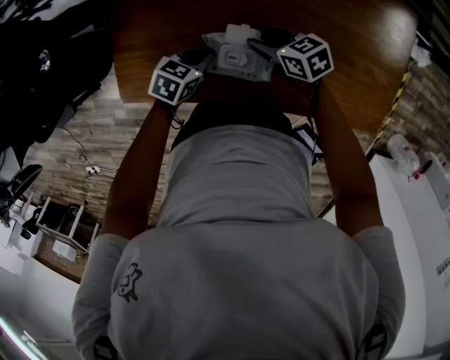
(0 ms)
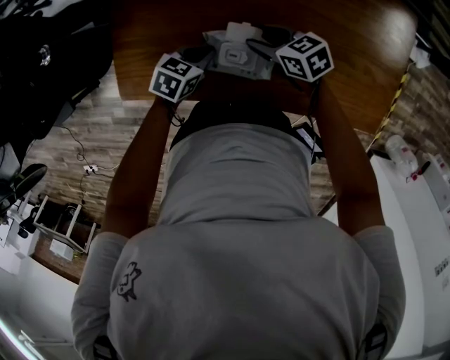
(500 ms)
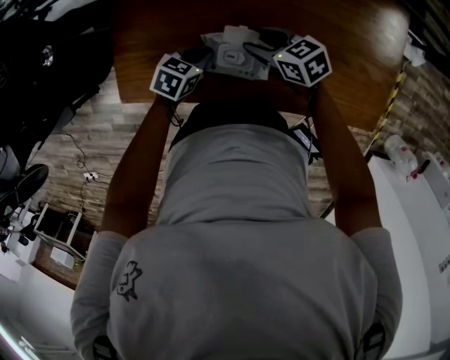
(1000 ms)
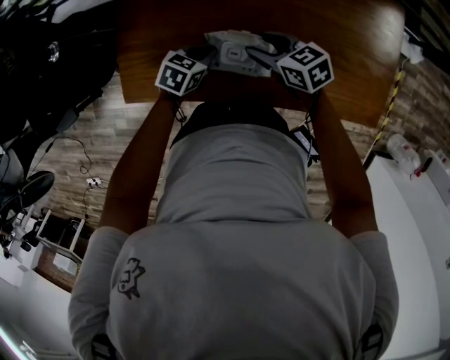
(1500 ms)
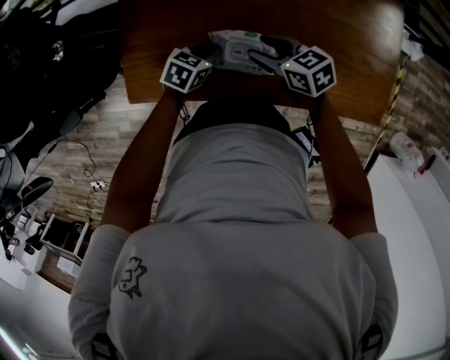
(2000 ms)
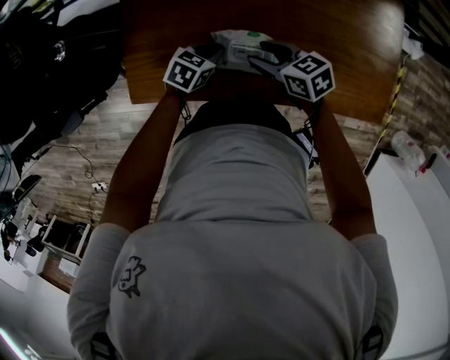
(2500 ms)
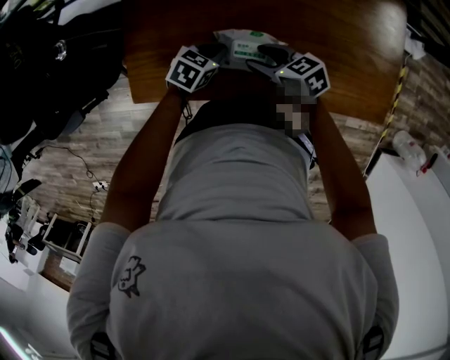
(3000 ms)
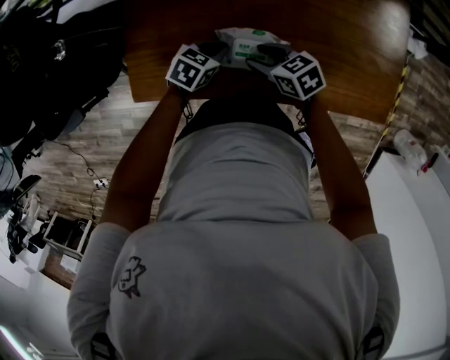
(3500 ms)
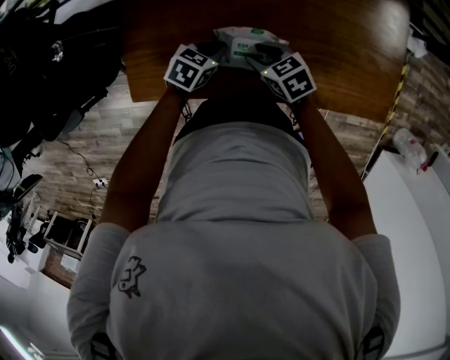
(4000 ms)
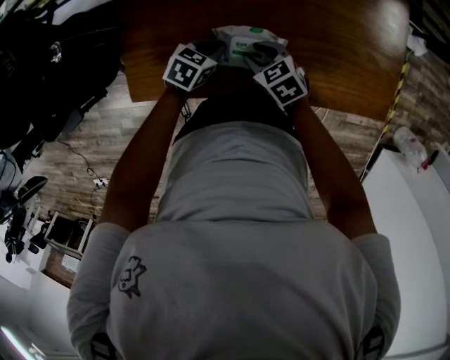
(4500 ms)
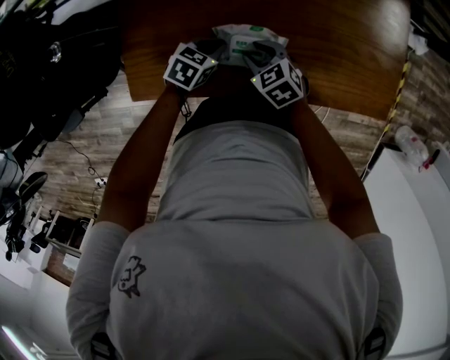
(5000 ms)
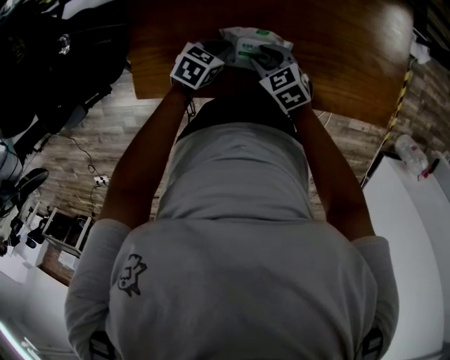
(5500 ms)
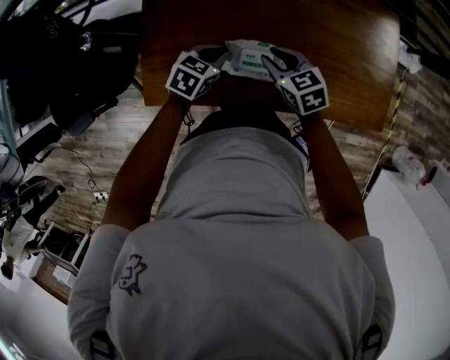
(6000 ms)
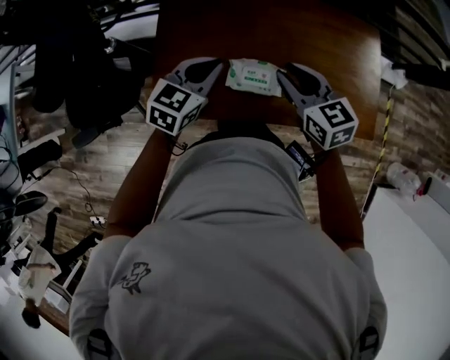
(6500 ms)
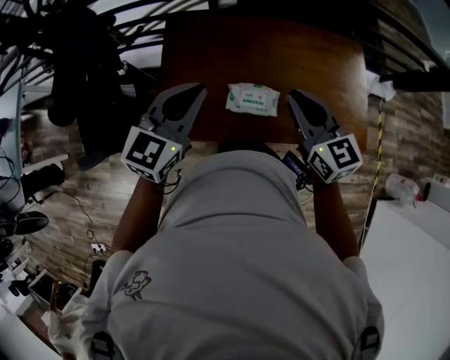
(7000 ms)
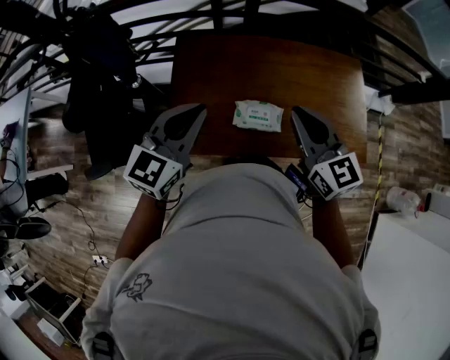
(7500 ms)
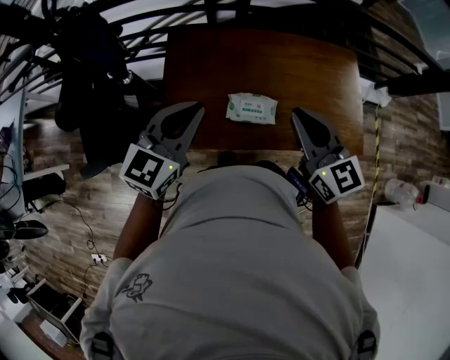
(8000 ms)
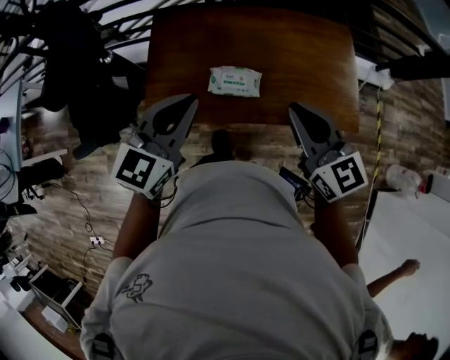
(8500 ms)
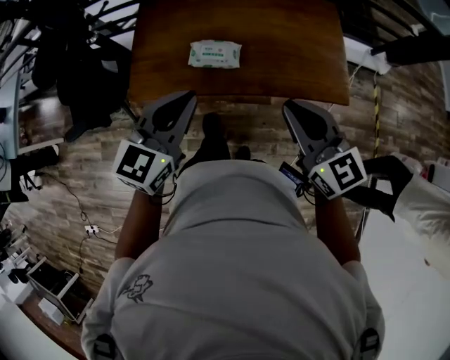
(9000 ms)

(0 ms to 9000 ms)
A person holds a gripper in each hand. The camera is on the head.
0 ms - 2000 ms: The right gripper shifts about 5 cm upward.
2000 ms - 4500 ms: The right gripper heads downward, covering about 5 cm, and changes its angle by some 20 degrees.
4500 ms - 7000 ms: The grippers both shift upward by roughly 35 cm. The left gripper tilts its fingers roughly 40 degrees upward; the right gripper tips its fingers upward by about 40 degrees, and closes.
7000 ms - 9000 ms: The grippers both shift backward and to the right by roughly 25 cm.

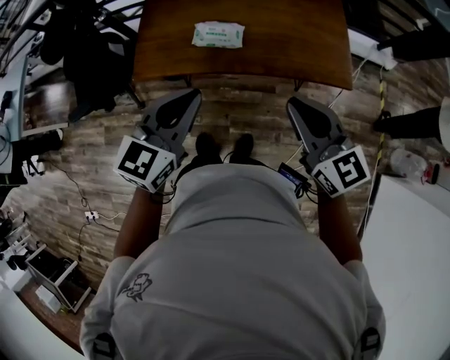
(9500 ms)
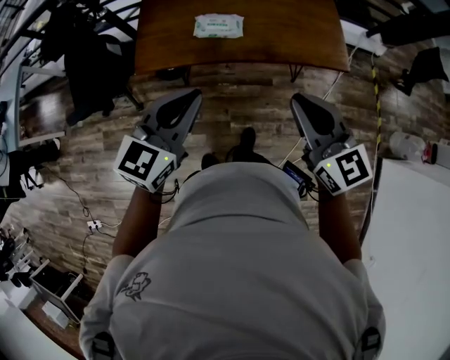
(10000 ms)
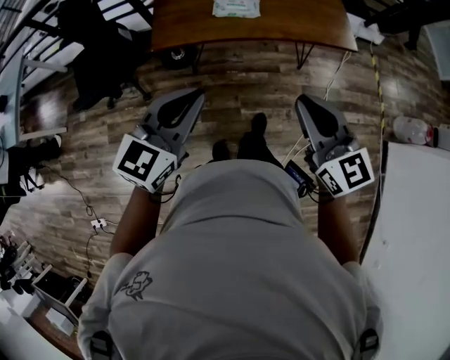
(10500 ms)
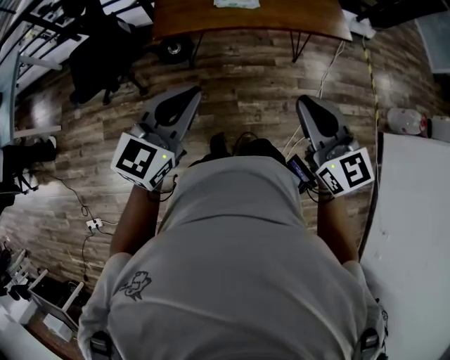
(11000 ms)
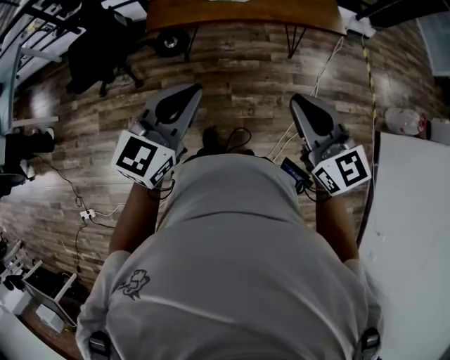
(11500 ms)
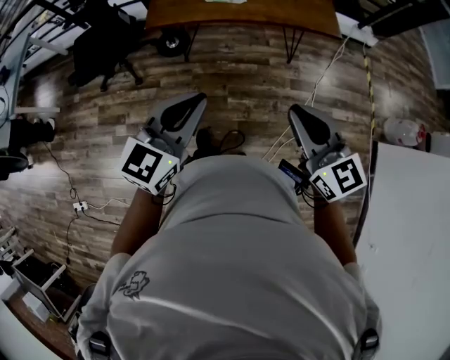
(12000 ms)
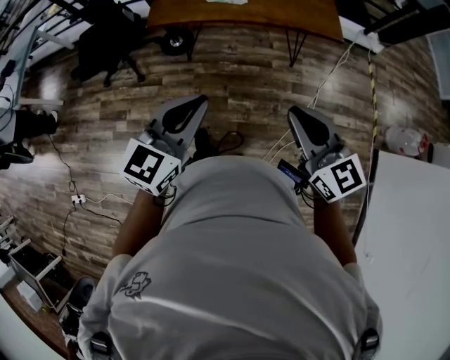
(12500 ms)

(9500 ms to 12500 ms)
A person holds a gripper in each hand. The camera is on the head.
9500 ms - 11000 ms: The grippers both shift backward and to the left by approximately 30 cm.
11000 ms - 12500 ms: Both grippers travel together to the right and backward, about 15 cm.

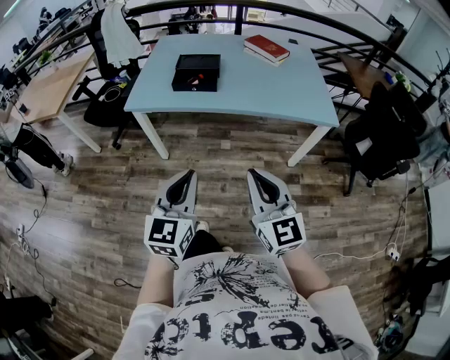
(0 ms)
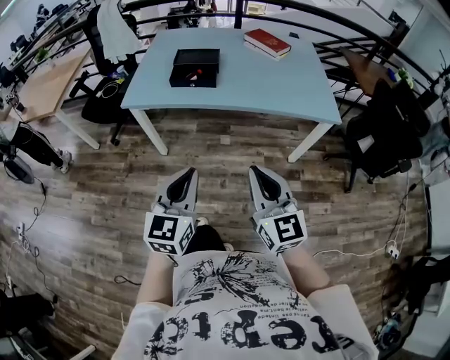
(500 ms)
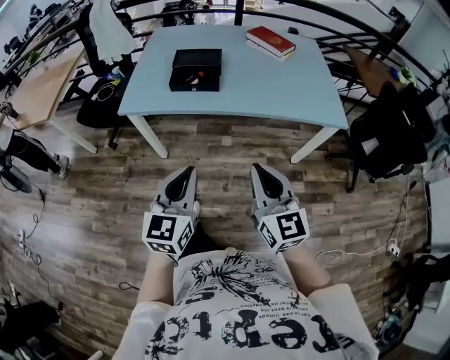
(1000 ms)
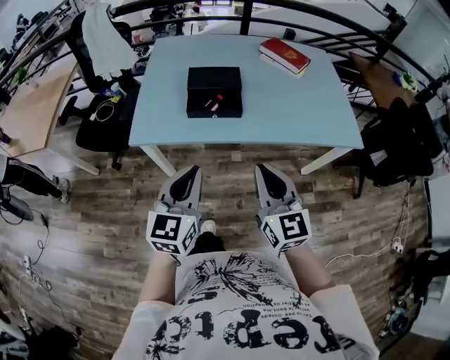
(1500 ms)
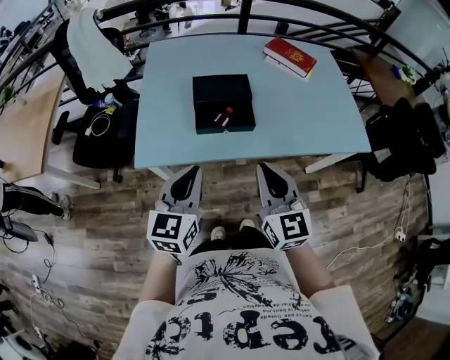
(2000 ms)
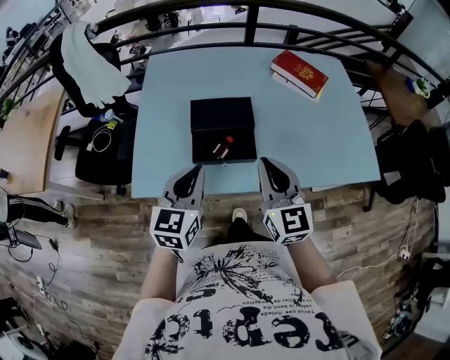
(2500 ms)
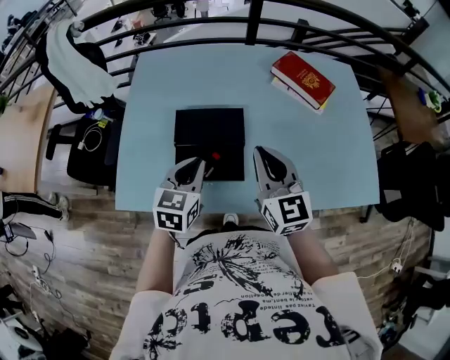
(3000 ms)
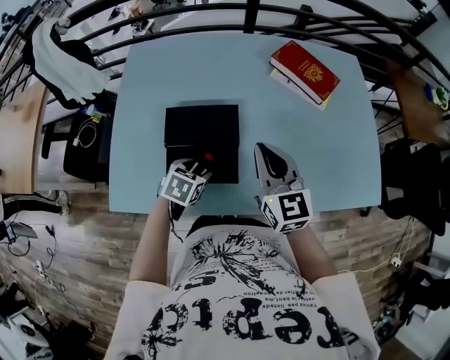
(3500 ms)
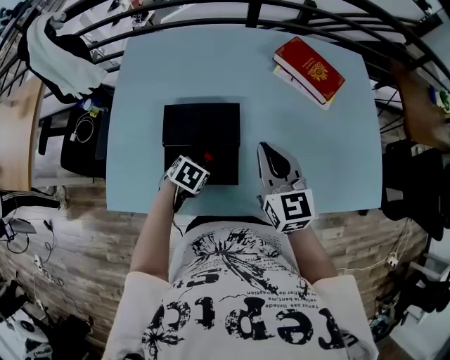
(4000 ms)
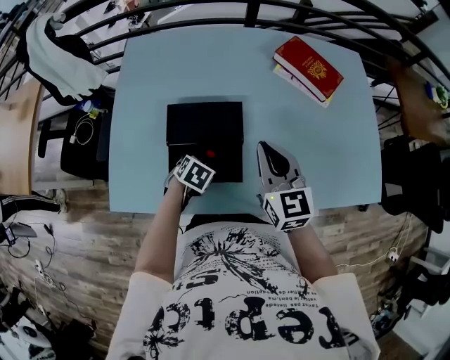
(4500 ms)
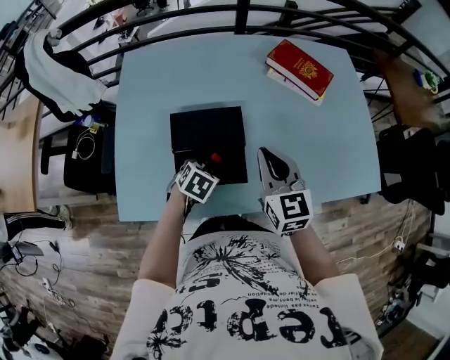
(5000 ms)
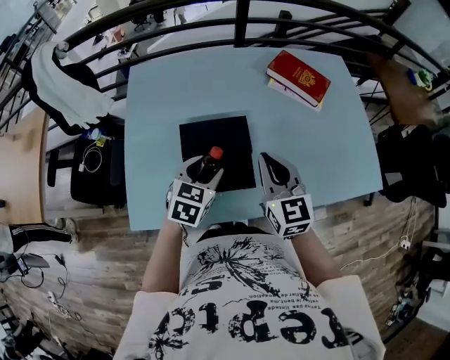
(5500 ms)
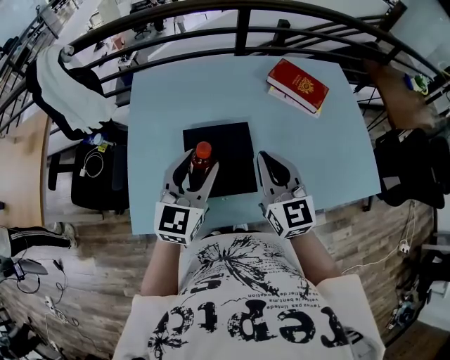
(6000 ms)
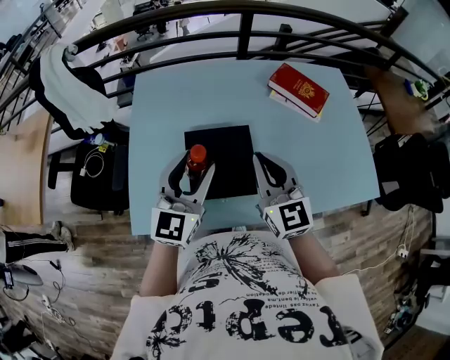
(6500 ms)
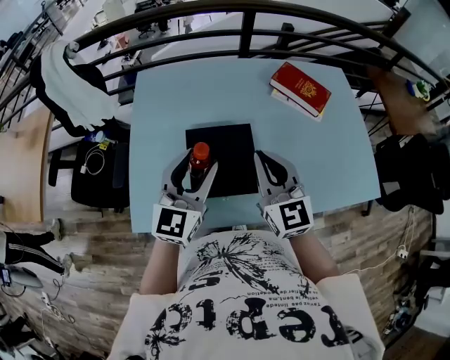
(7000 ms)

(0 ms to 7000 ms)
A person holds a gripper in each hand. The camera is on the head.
0 ms - 2000 ms: Both grippers are carried forward and to the left, roughly 40 cm.
2000 ms - 3500 ms: The left gripper heads forward and downward, covering about 35 cm, points its fingers about 50 degrees further downward, and opens its fingers; the right gripper goes some 35 cm forward.
5000 ms - 7000 ms: The right gripper shifts some 10 cm upward and to the left. The left gripper moves upward, roughly 30 cm, and angles its fingers upward, by some 60 degrees.

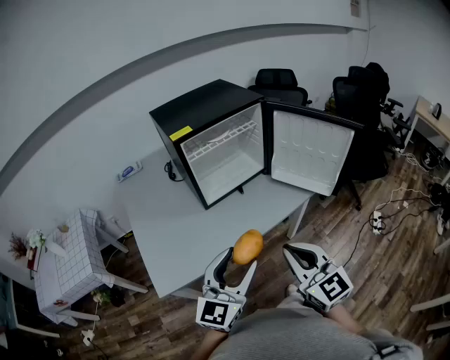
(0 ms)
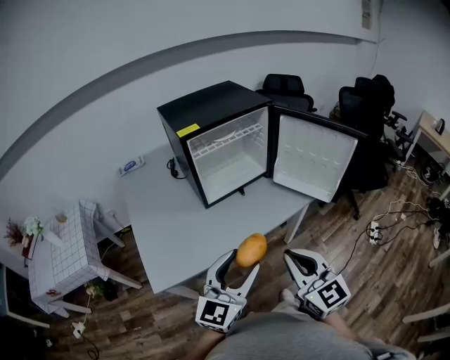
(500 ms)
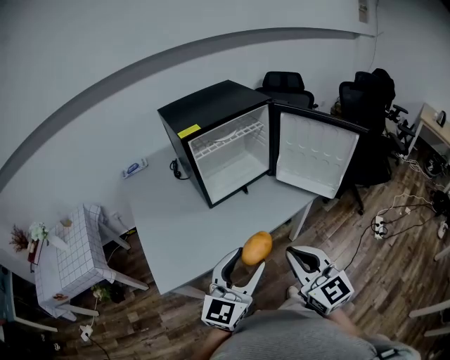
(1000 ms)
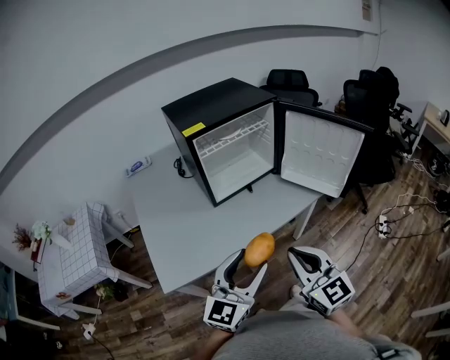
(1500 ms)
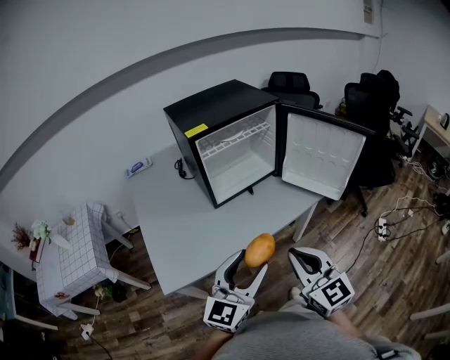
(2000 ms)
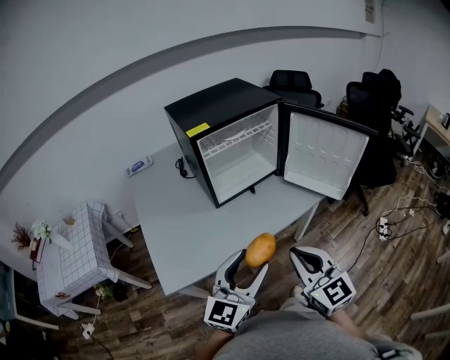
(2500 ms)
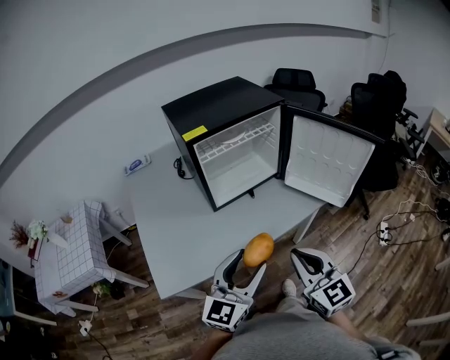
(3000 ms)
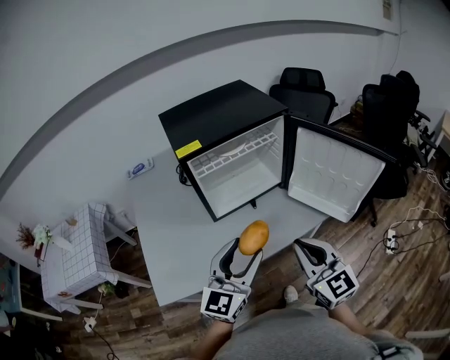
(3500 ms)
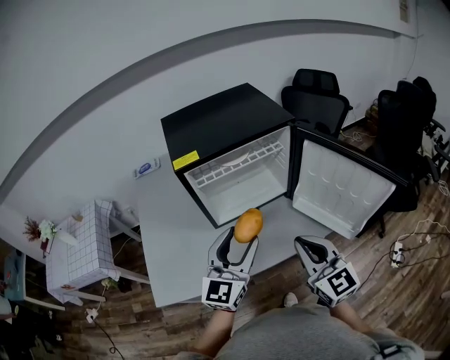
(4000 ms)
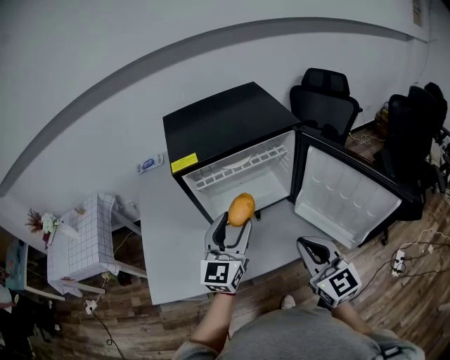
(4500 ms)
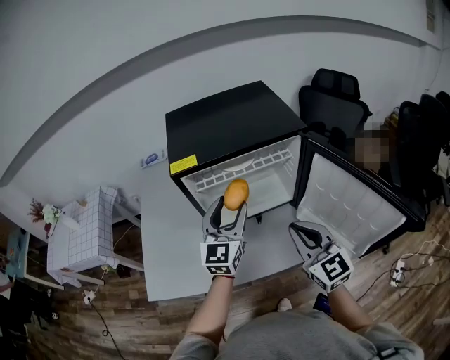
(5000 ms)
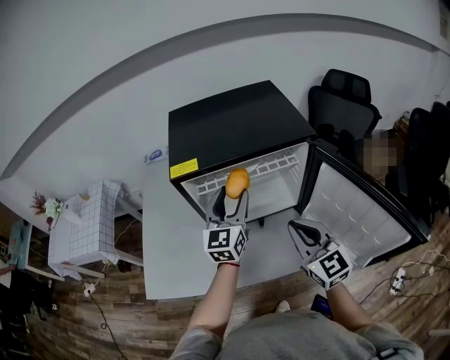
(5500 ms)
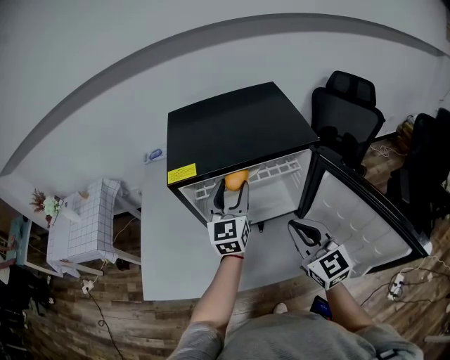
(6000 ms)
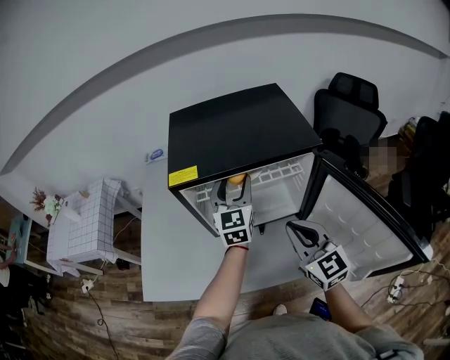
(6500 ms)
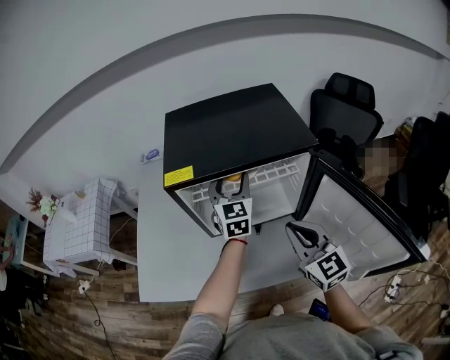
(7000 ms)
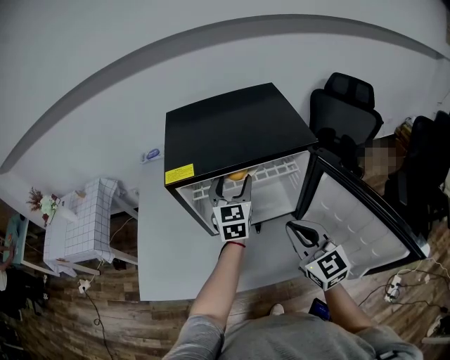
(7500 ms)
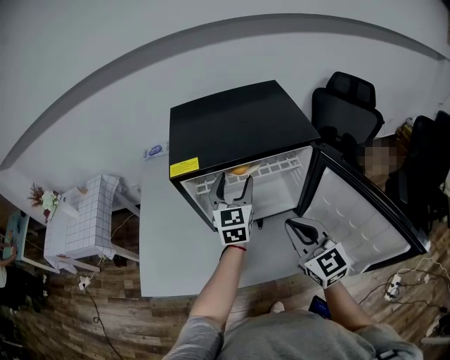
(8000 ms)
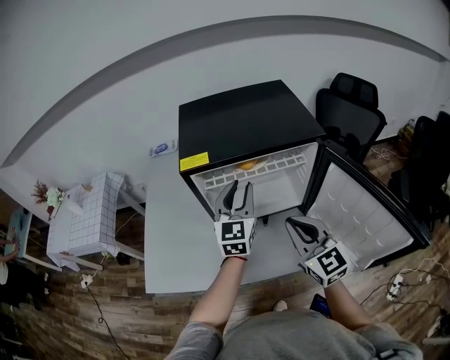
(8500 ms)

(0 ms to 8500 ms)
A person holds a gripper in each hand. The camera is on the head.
0 ms - 2000 ms: The grippers make only small movements.
2000 ms - 4000 ms: Both grippers travel together forward, roughly 20 cm.
4000 ms - 6500 ms: The right gripper heads forward, covering some 20 cm; the left gripper is displaced forward by roughly 30 cm, and changes its angle by roughly 30 degrees.
6500 ms - 8500 ms: The left gripper heads backward, covering about 5 cm, and closes.
